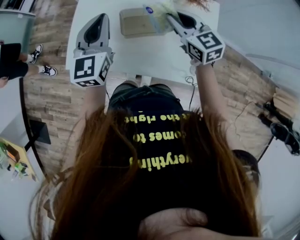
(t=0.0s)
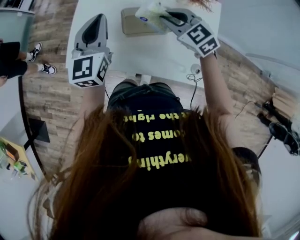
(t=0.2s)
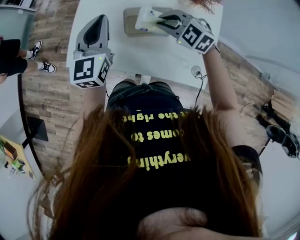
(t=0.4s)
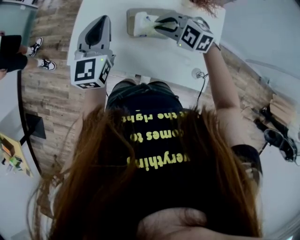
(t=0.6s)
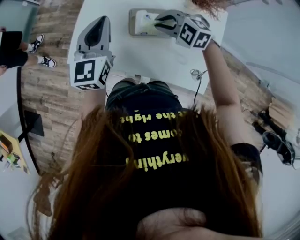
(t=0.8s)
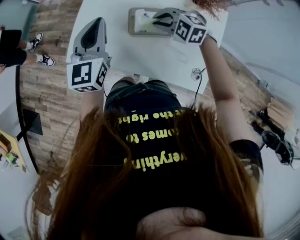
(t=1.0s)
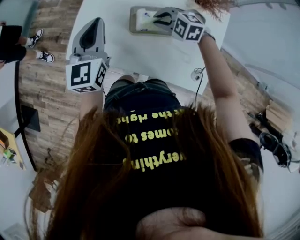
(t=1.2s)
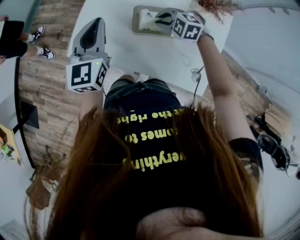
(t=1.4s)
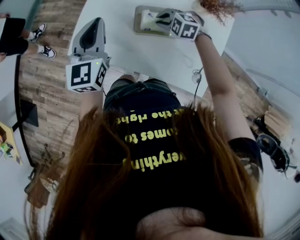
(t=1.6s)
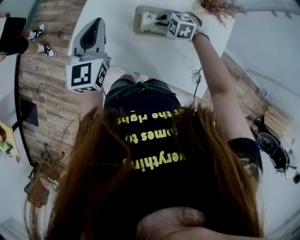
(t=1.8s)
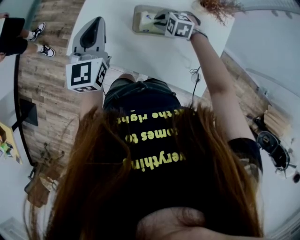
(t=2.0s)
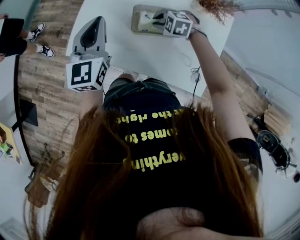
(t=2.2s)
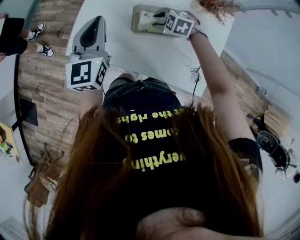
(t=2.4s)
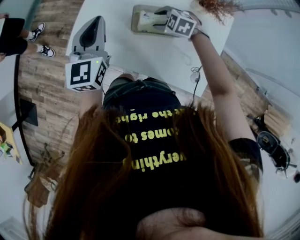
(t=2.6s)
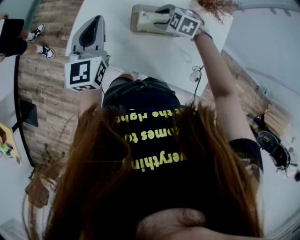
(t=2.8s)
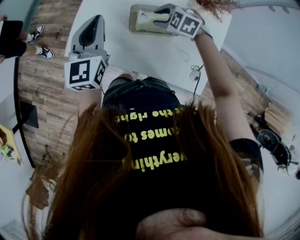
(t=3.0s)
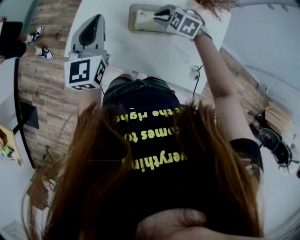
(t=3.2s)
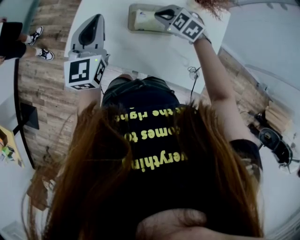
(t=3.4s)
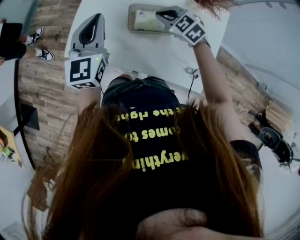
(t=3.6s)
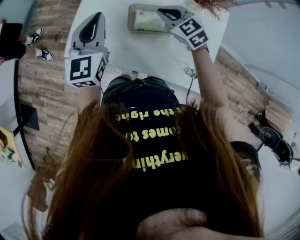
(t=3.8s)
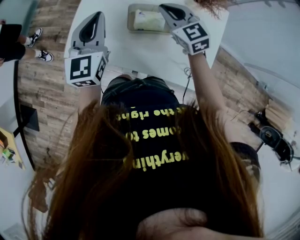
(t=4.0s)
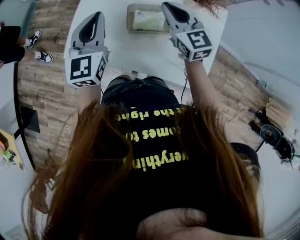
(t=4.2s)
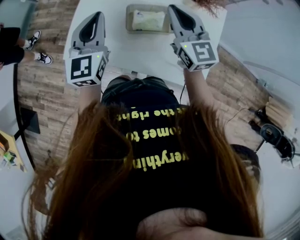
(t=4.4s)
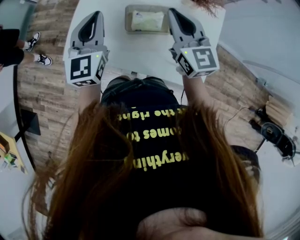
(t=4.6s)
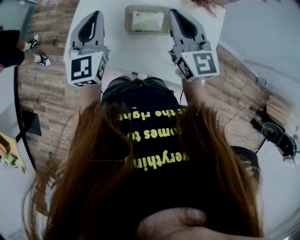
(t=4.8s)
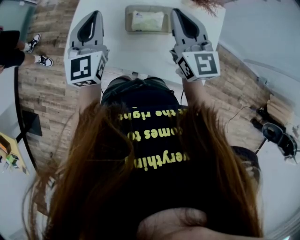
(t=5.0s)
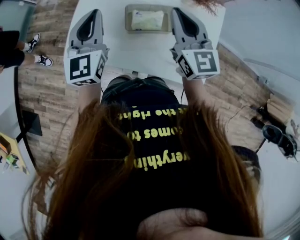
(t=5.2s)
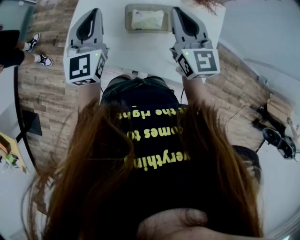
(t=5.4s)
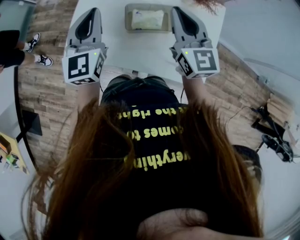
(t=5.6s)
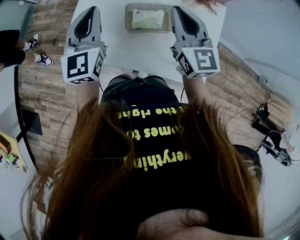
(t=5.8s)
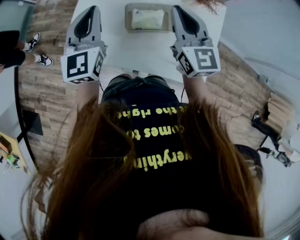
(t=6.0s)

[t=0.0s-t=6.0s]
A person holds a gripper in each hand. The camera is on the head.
t=0.0s to t=1.6s: The right gripper moves downward and to the left, some 20 cm, and tips its fingers downward by approximately 40 degrees. Meanwhile the left gripper travels to the left by roughly 5 cm.
t=1.6s to t=3.0s: The right gripper opens its fingers.
t=3.0s to t=4.4s: The right gripper is displaced upward by some 20 cm, tips its fingers upward by some 50 degrees, and closes.
t=4.4s to t=6.0s: There are only small adjustments of the grippers.

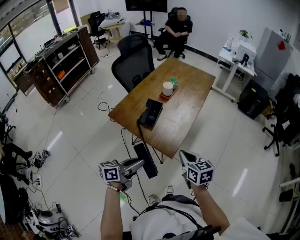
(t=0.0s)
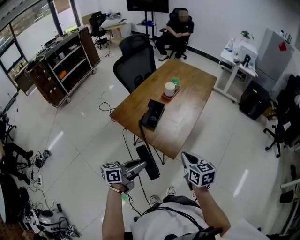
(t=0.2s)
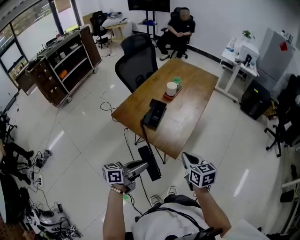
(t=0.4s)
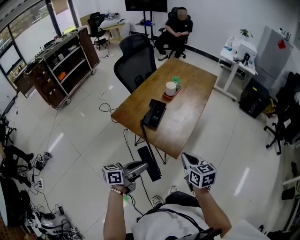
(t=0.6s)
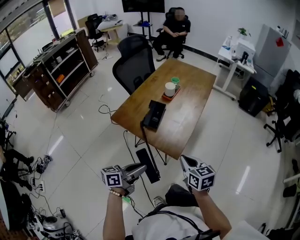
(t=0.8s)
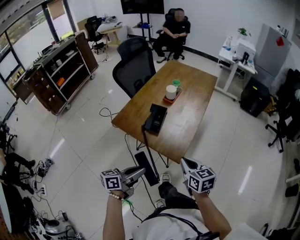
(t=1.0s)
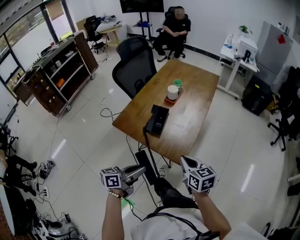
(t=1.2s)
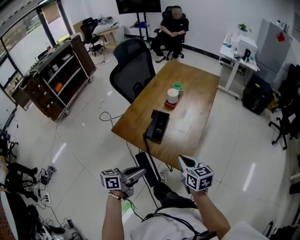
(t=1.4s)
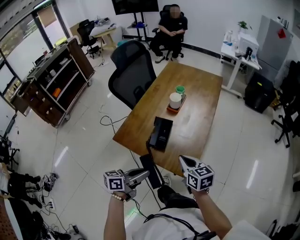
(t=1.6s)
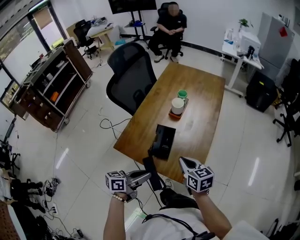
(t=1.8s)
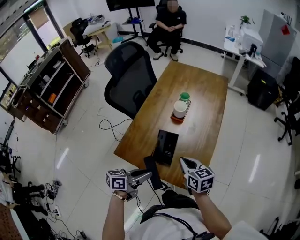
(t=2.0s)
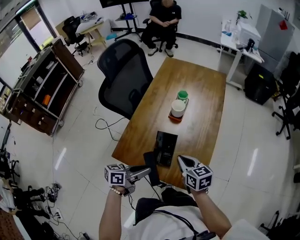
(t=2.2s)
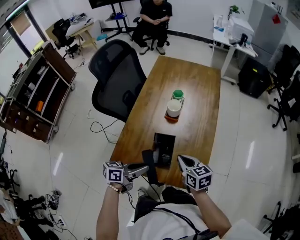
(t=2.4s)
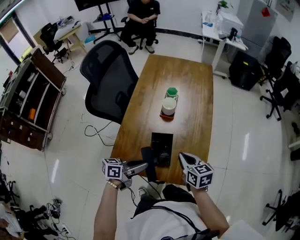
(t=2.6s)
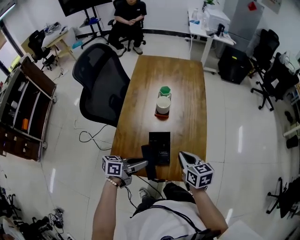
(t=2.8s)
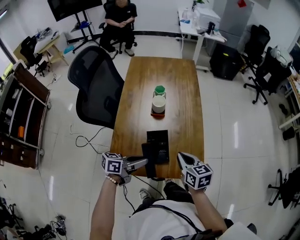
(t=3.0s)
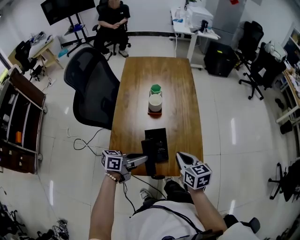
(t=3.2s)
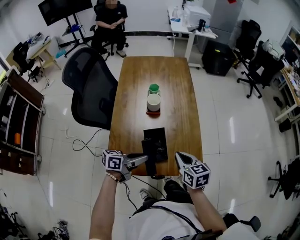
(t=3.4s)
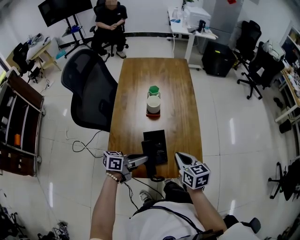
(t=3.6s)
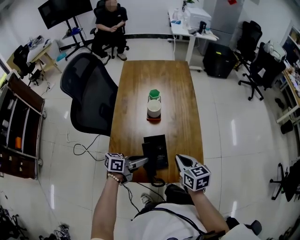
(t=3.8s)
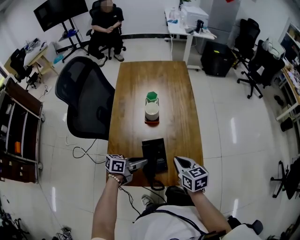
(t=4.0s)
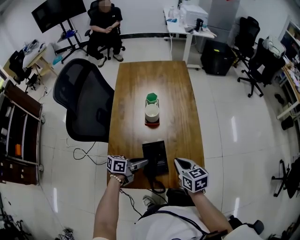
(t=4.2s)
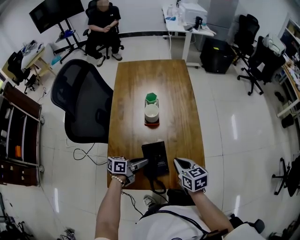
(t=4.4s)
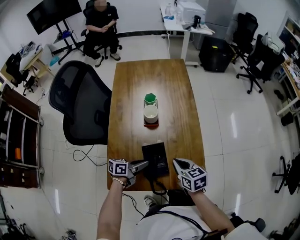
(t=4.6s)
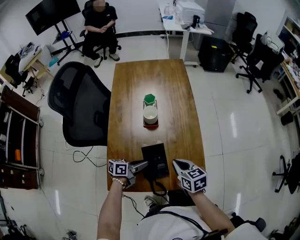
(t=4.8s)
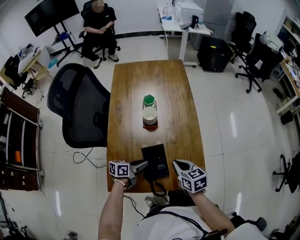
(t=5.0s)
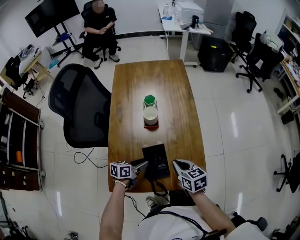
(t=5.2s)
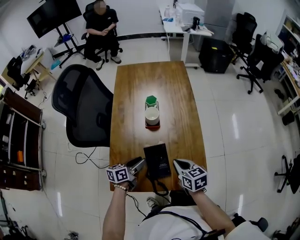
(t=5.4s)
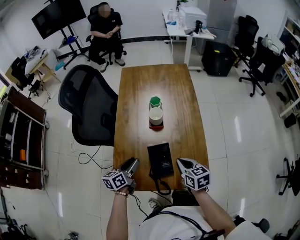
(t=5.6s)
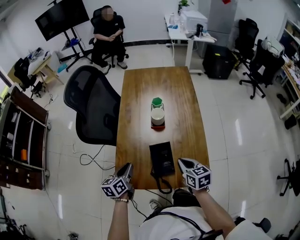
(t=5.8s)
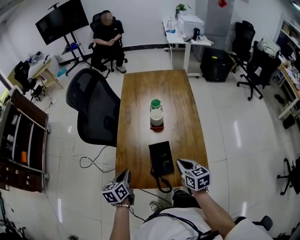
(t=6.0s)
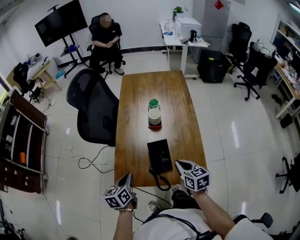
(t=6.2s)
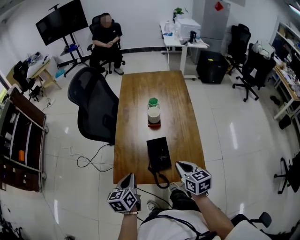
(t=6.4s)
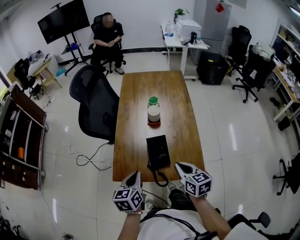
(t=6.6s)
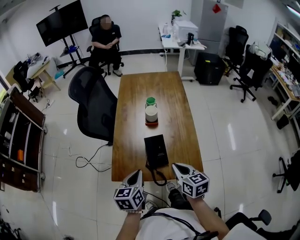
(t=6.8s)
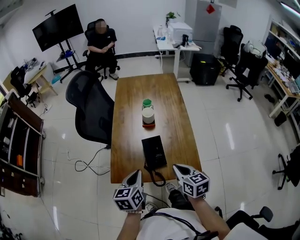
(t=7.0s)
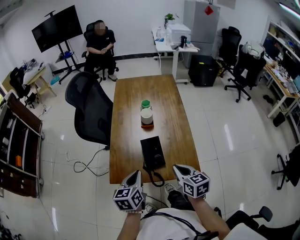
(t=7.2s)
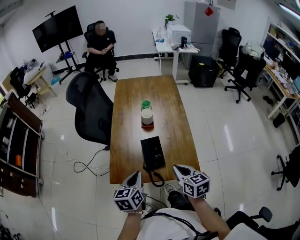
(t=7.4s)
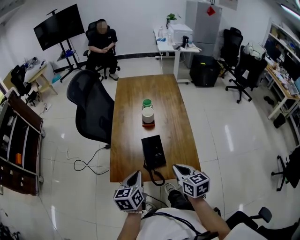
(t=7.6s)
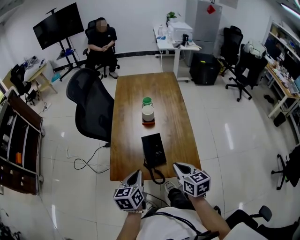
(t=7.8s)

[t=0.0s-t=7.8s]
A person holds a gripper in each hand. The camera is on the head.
t=0.0s to t=1.6s: The right gripper heads to the left and forward, covering some 15 cm; the left gripper is displaced forward and to the left by approximately 10 cm.
t=1.6s to t=3.2s: The right gripper changes place by approximately 10 cm, and changes its angle by approximately 30 degrees. Meanwhile the left gripper ends up roughly 20 cm from where it was, and rotates approximately 40 degrees.
t=3.2s to t=4.6s: The left gripper goes about 15 cm downward and forward. The right gripper changes place by roughly 5 cm.
t=4.6s to t=6.2s: The right gripper goes some 5 cm backward. Meanwhile the left gripper shifts some 20 cm to the left, backward and upward, changes its angle by roughly 50 degrees, and opens and closes again.
t=6.2s to t=7.8s: The right gripper heads backward, covering about 5 cm. The left gripper goes roughly 10 cm to the right and upward.

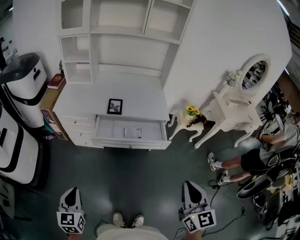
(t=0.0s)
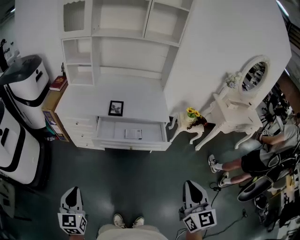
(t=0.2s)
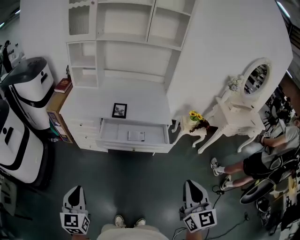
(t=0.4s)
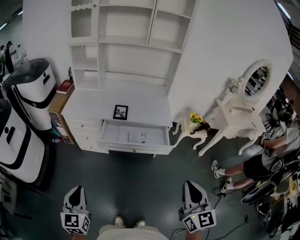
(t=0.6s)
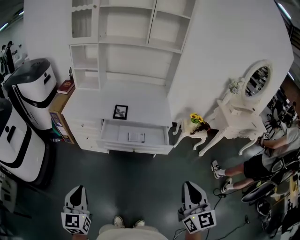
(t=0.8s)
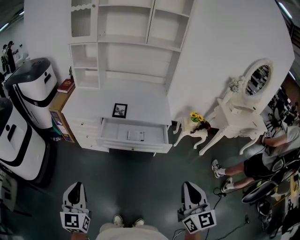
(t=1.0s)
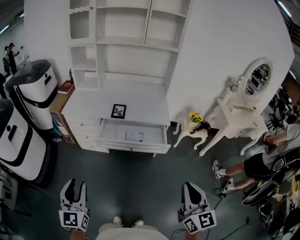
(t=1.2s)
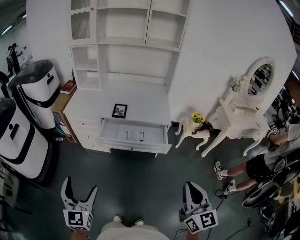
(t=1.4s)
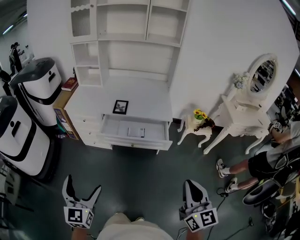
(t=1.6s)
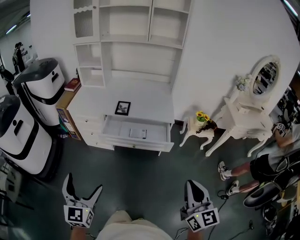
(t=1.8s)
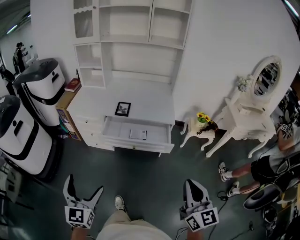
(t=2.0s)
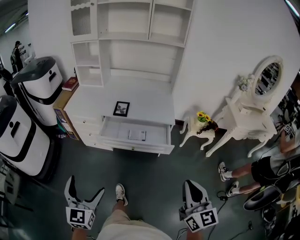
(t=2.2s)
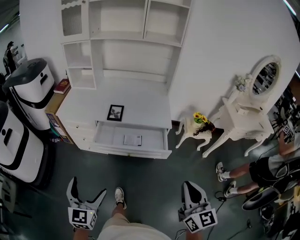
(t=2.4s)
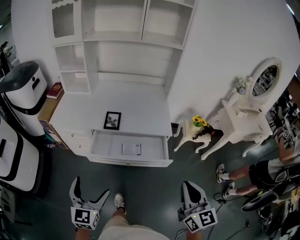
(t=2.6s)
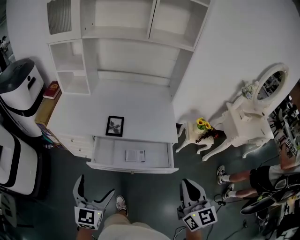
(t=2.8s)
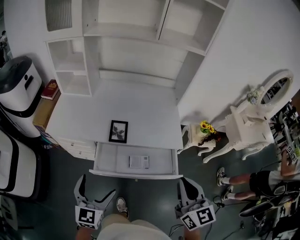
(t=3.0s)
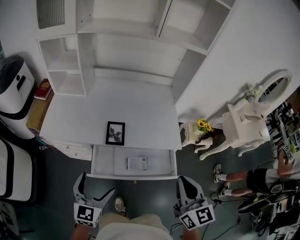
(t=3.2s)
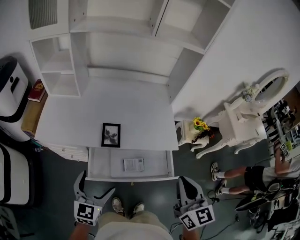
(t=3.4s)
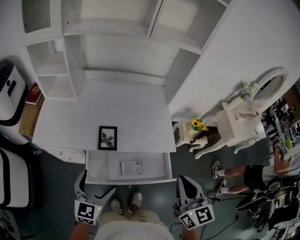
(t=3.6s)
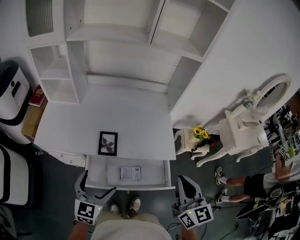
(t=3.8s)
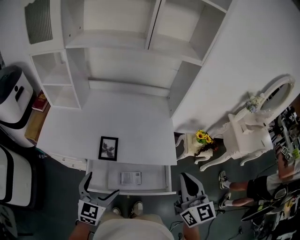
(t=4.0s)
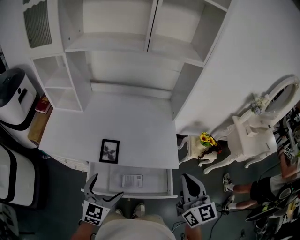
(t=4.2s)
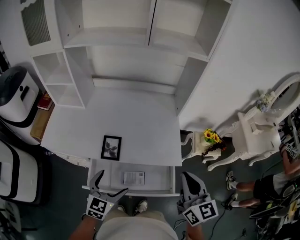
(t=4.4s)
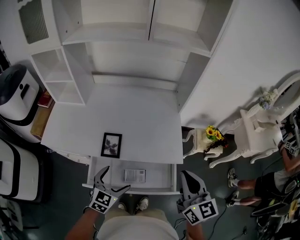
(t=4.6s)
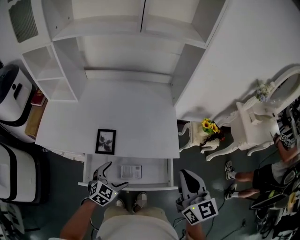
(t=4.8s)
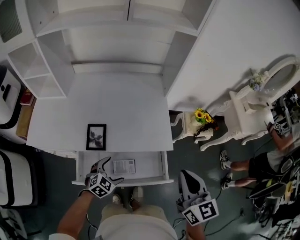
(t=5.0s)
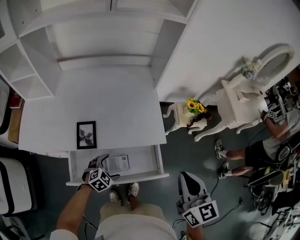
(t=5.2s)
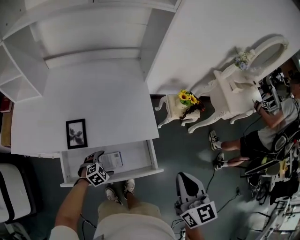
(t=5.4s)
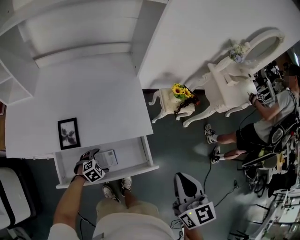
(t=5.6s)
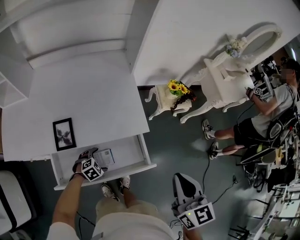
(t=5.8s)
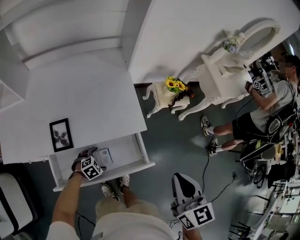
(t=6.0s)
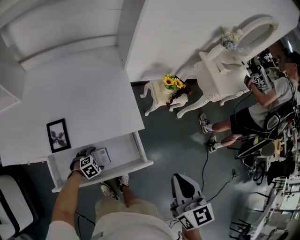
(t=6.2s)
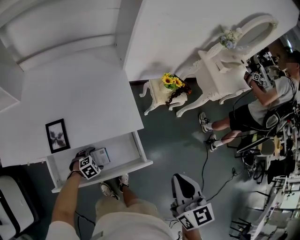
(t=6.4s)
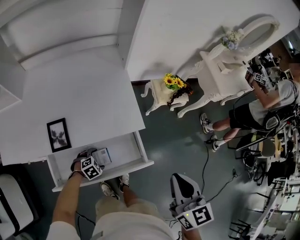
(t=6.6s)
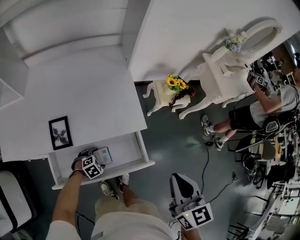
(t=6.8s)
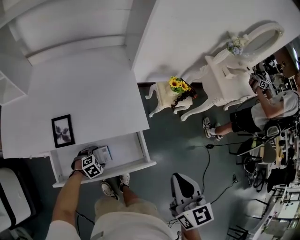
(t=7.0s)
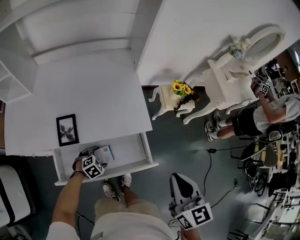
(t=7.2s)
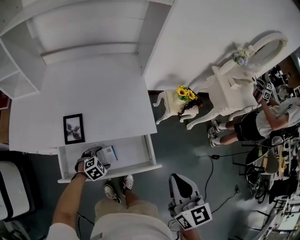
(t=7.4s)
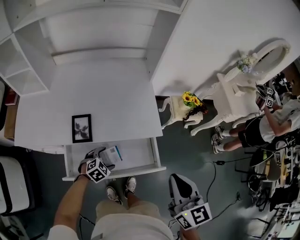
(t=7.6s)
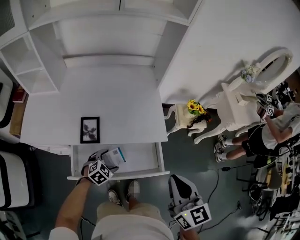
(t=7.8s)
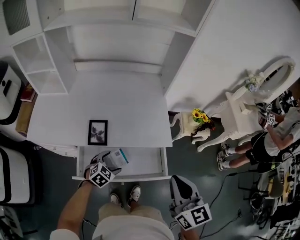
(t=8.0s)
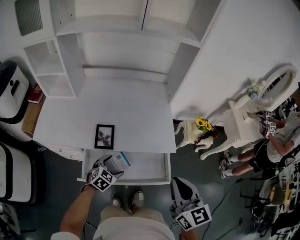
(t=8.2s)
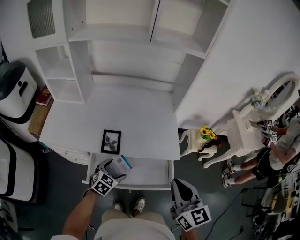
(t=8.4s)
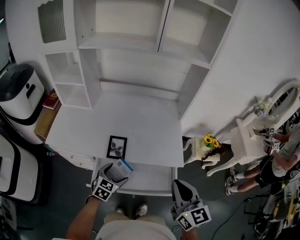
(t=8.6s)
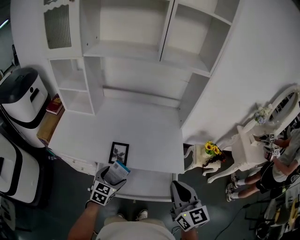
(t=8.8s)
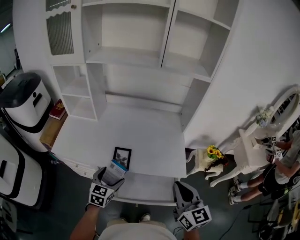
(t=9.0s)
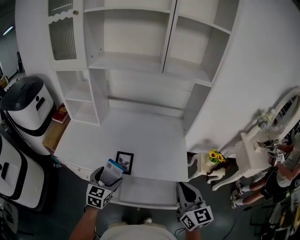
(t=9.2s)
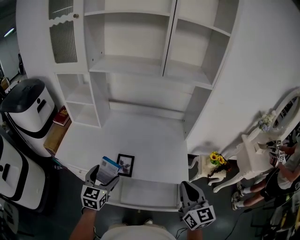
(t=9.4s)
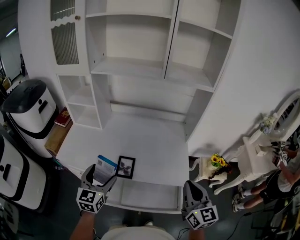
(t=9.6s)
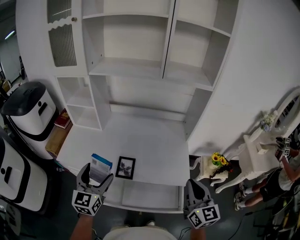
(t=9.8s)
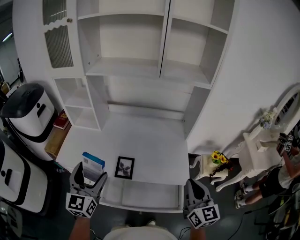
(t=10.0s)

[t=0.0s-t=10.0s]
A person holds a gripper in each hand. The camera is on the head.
t=0.0s to t=1.4s: The right gripper heads to the right and backward, covering roughly 10 cm; the left gripper goes about 15 cm to the right, upward and backward, and opens its fingers.
t=1.4s to t=2.8s: The two grippers go about 30 cm forward.
t=2.8s to t=4.2s: The grippers both shift forward by about 20 cm.
t=4.2s to t=5.8s: The right gripper ends up some 15 cm from where it was, and swivels some 20 degrees, while the left gripper shifts approximately 35 cm downward, and tilts its fingers about 40 degrees downward.
t=5.8s to t=7.2s: There are only small adjustments of the grippers.
t=7.2s to t=8.6s: The left gripper heads upward, covering approximately 20 cm, and angles its fingers upward, by roughly 30 degrees; the right gripper ends up some 15 cm from where it was, and turns by approximately 20 degrees.
t=8.6s to t=10.0s: The right gripper heads forward, covering some 5 cm. The left gripper moves upward and to the left, roughly 30 cm, and points its fingers roughly 40 degrees further upward.
